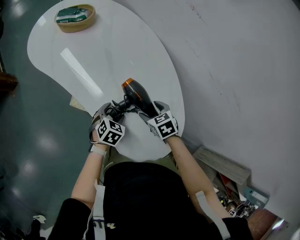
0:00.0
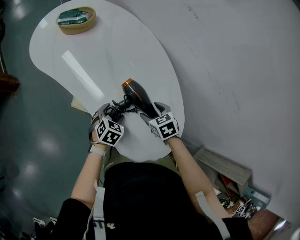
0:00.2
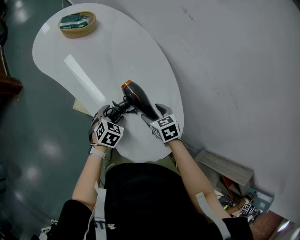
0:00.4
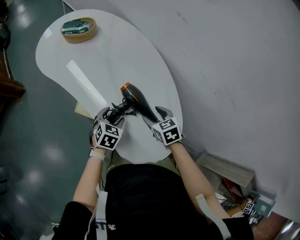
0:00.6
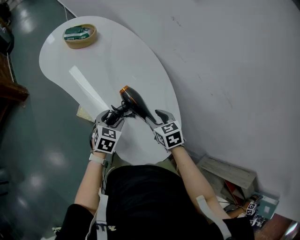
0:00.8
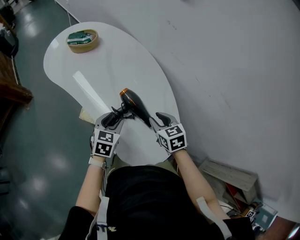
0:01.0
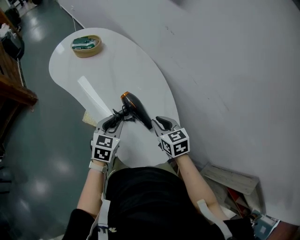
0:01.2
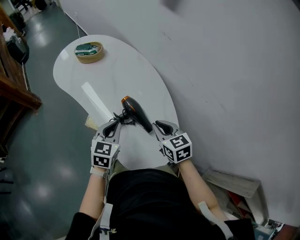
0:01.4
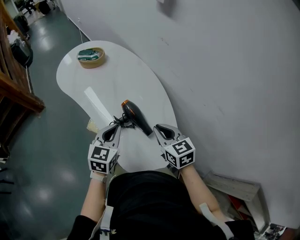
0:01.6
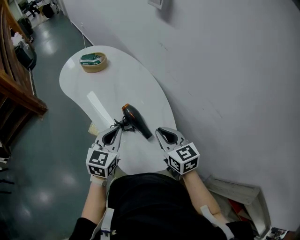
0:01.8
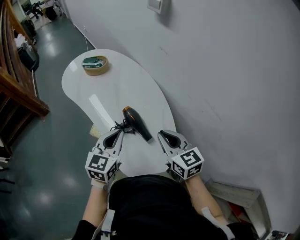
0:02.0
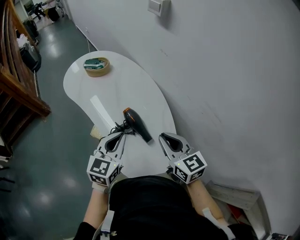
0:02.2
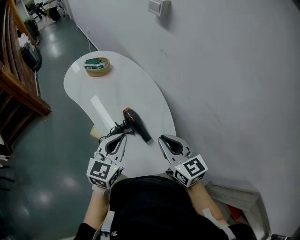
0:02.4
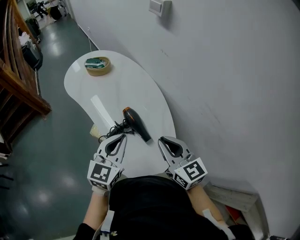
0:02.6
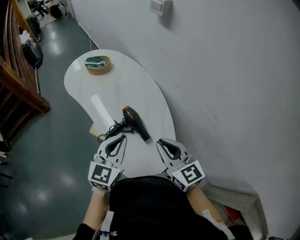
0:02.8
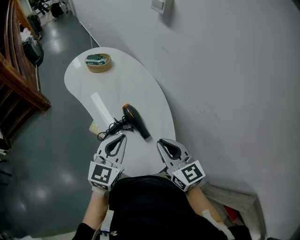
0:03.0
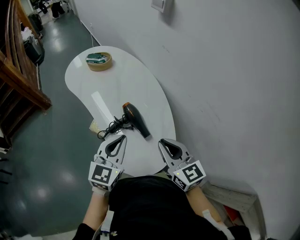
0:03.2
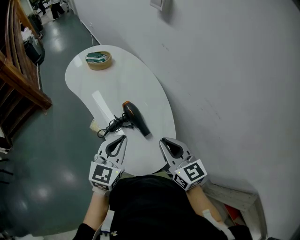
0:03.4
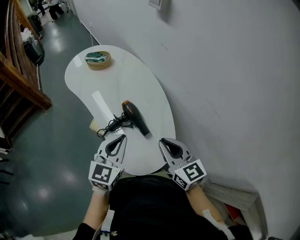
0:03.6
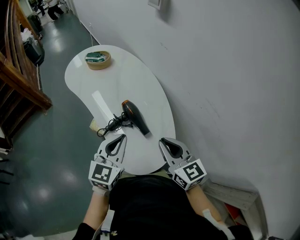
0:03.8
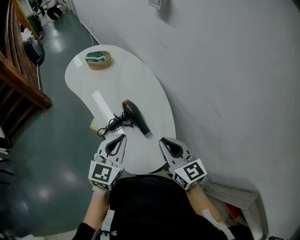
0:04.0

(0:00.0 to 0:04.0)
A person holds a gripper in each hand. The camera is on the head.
0:00.0 - 0:01.4: The two grippers go roughly 20 cm upward. The left gripper swivels approximately 30 degrees, and closes its fingers, while the right gripper turns by roughly 30 degrees, and closes its fingers.
0:01.4 - 0:02.6: Both grippers move upward and backward, approximately 15 cm. The right gripper turns by approximately 20 degrees.
0:02.6 - 0:04.0: There are only small adjustments of the grippers.

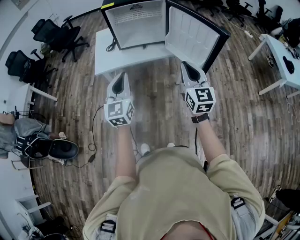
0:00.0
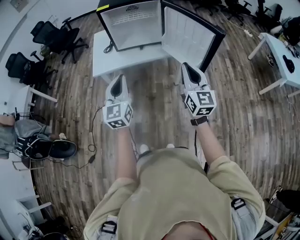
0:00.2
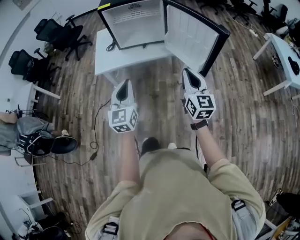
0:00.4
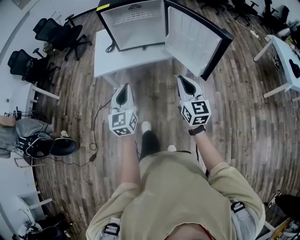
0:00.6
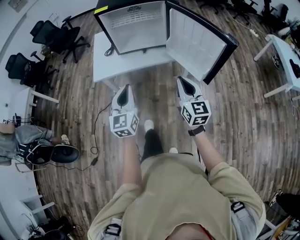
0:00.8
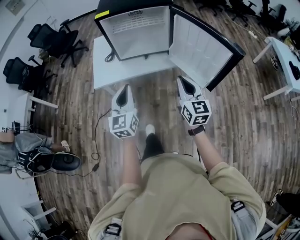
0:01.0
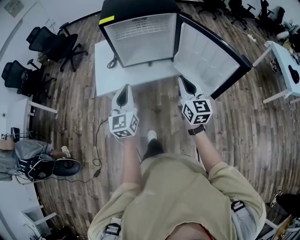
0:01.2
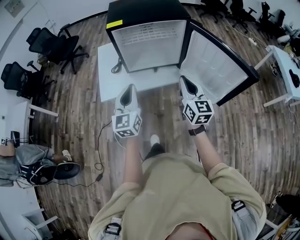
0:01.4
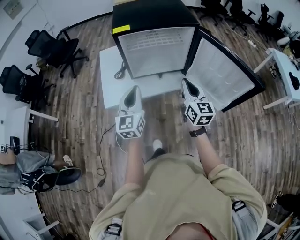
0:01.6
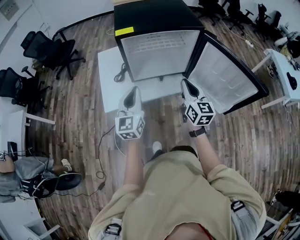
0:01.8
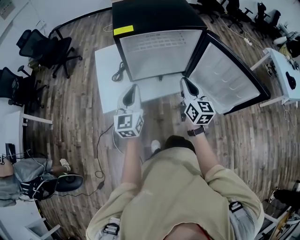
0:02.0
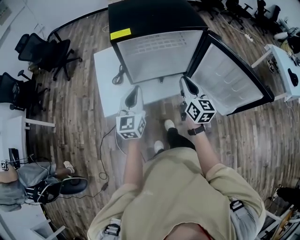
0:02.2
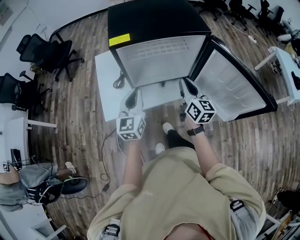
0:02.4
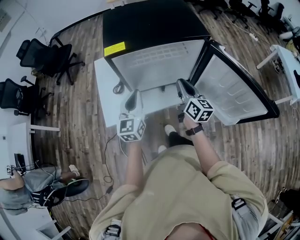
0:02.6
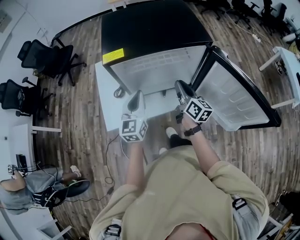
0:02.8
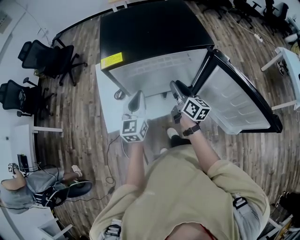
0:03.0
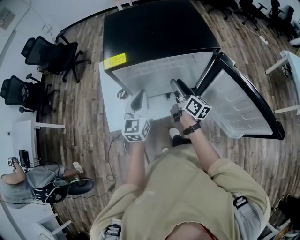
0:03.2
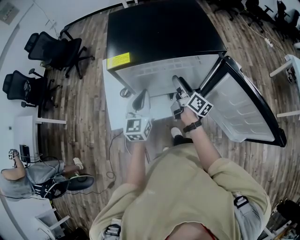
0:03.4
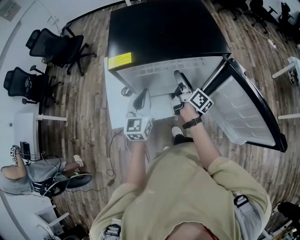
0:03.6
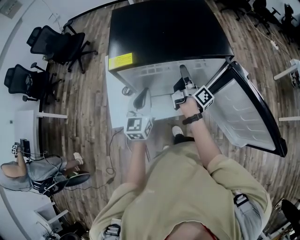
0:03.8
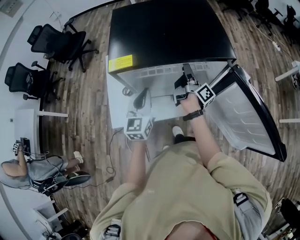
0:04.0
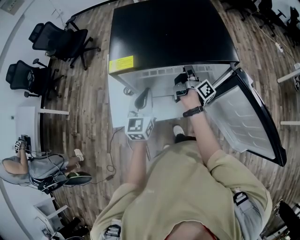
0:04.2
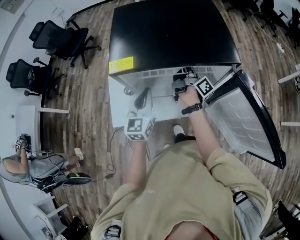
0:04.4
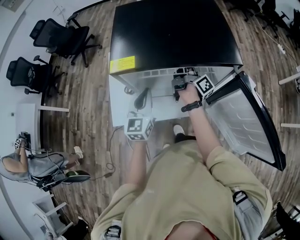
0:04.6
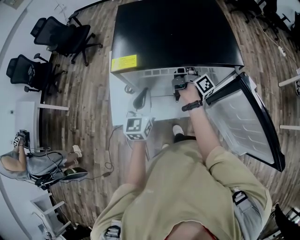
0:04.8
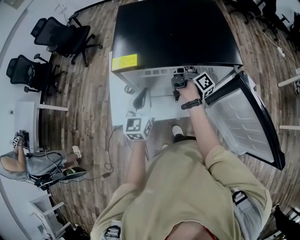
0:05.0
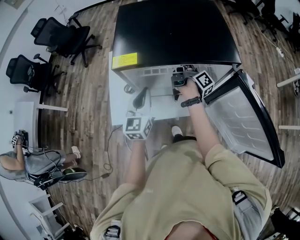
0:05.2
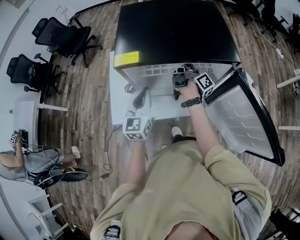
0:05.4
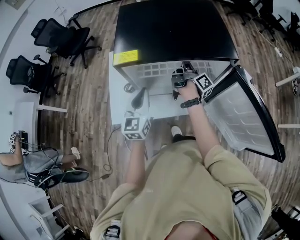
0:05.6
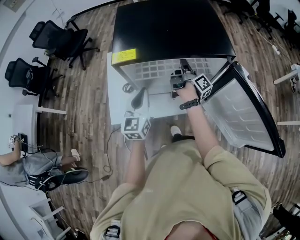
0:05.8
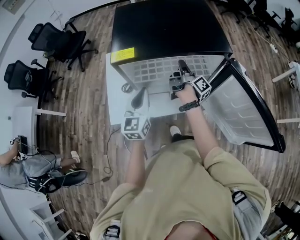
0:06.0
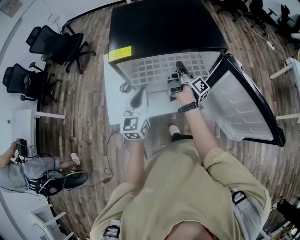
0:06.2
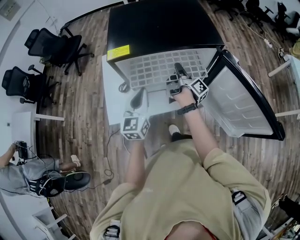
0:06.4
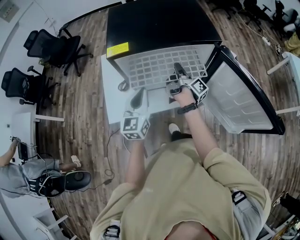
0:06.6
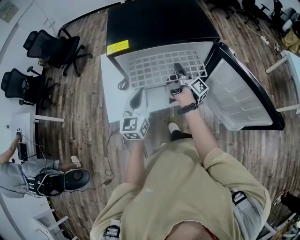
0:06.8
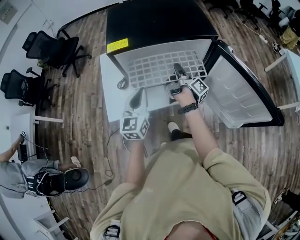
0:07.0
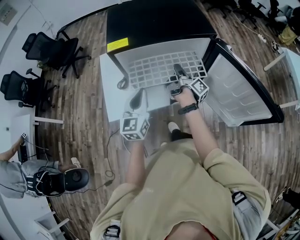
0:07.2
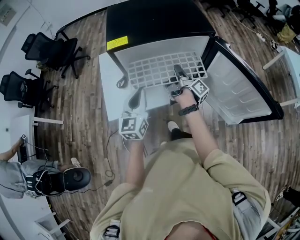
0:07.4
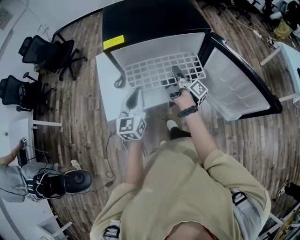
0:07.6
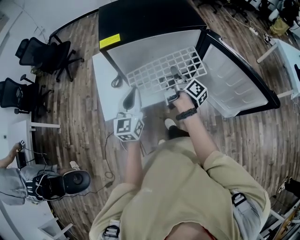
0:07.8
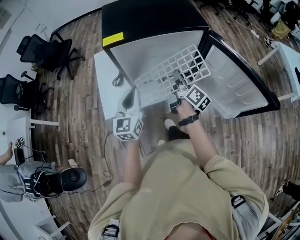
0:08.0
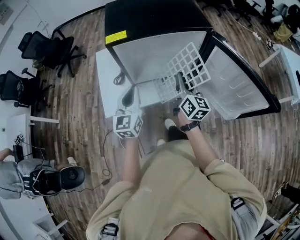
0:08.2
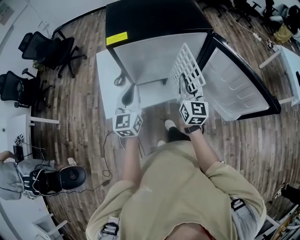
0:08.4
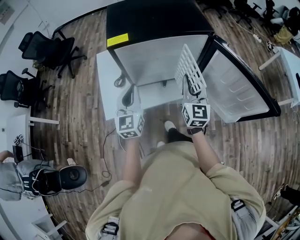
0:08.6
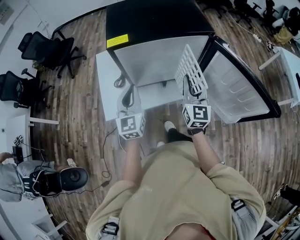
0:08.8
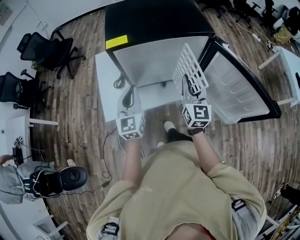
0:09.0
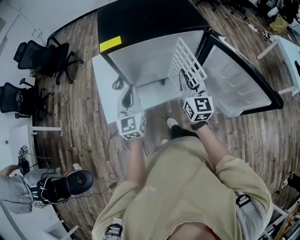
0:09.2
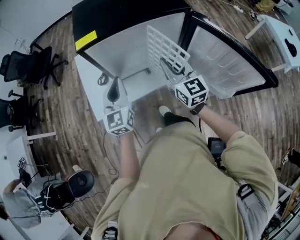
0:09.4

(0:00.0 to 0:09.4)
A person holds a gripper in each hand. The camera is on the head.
0:00.0 - 0:01.6: The grippers both shift forward by about 25 cm.
0:01.6 - 0:03.2: The two grippers go some 25 cm forward. The right gripper rotates around the line of its fingers by some 40 degrees, clockwise from behind, and opens its fingers.
0:03.2 - 0:04.8: The left gripper moves some 5 cm; the right gripper is displaced forward by some 15 cm, and rotates some 40 degrees.
0:04.8 - 0:06.2: The left gripper changes place by some 5 cm. The right gripper is displaced backward by about 5 cm, and closes up.
0:06.2 - 0:07.8: The right gripper shifts some 15 cm backward; the left gripper heads backward, covering some 10 cm.
0:07.8 - 0:09.4: The right gripper heads upward, covering roughly 10 cm, and rolls counterclockwise, seen from behind, by some 80 degrees. The left gripper moves roughly 5 cm.

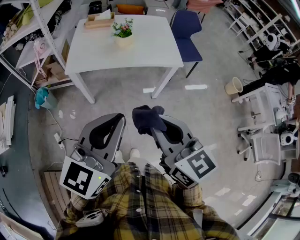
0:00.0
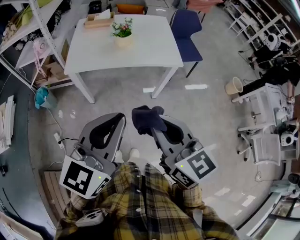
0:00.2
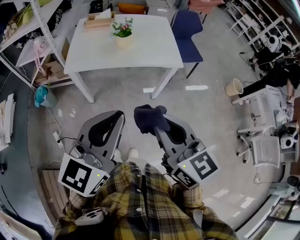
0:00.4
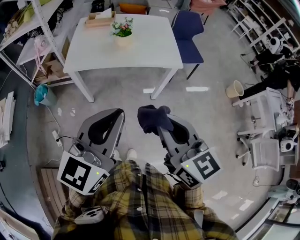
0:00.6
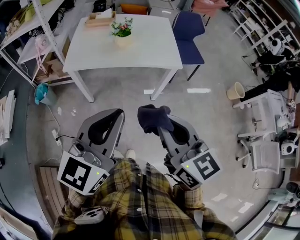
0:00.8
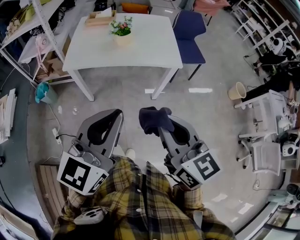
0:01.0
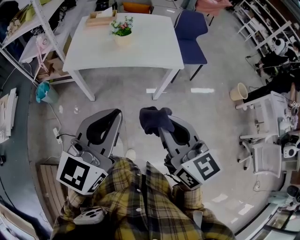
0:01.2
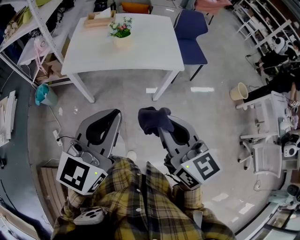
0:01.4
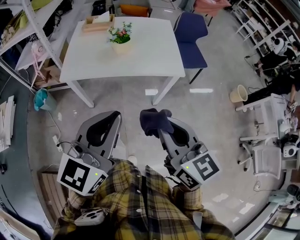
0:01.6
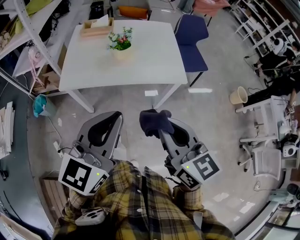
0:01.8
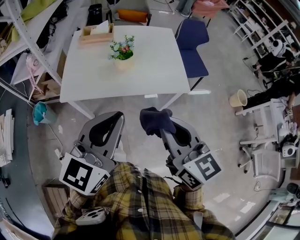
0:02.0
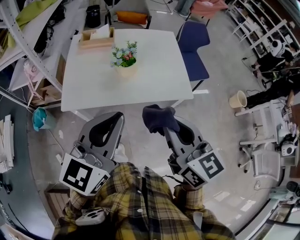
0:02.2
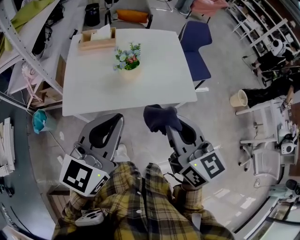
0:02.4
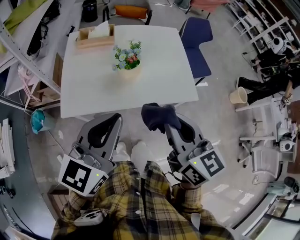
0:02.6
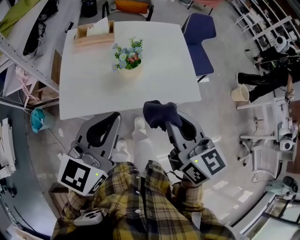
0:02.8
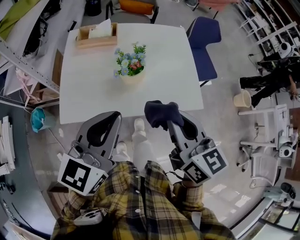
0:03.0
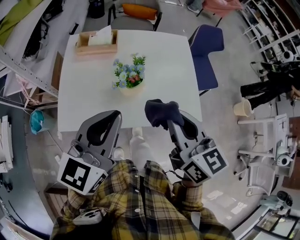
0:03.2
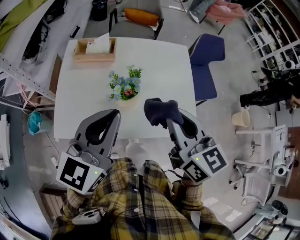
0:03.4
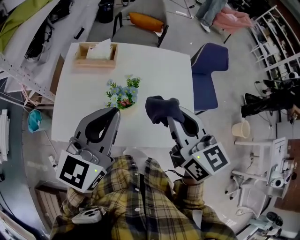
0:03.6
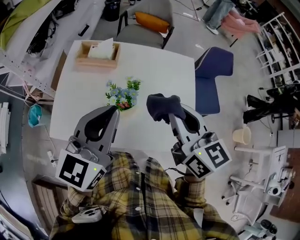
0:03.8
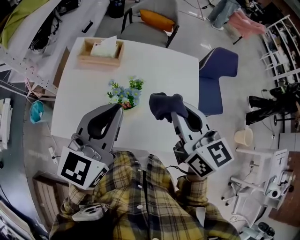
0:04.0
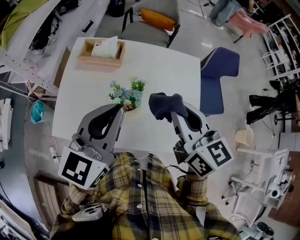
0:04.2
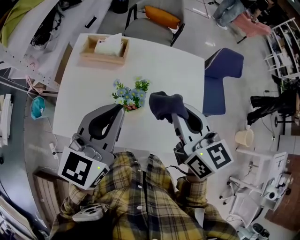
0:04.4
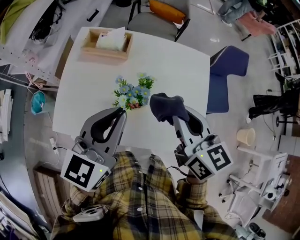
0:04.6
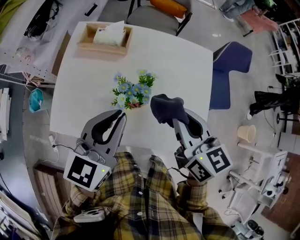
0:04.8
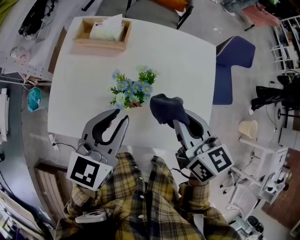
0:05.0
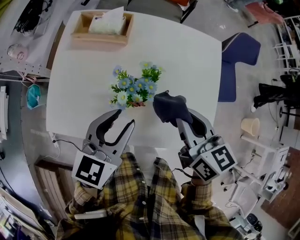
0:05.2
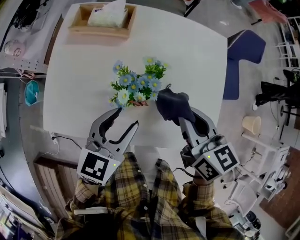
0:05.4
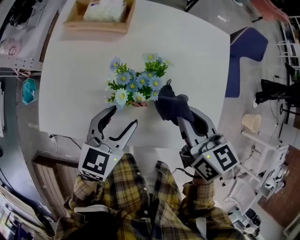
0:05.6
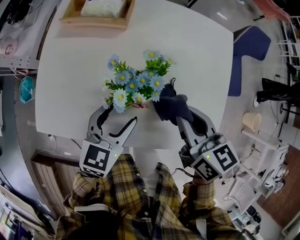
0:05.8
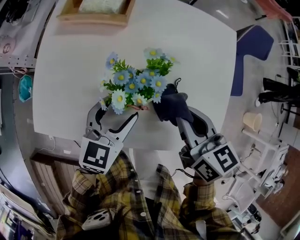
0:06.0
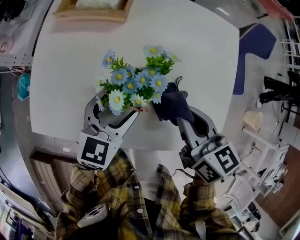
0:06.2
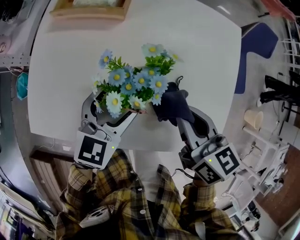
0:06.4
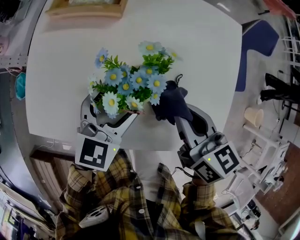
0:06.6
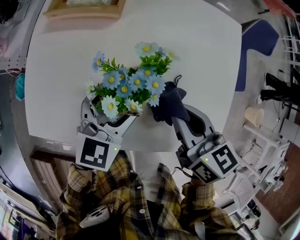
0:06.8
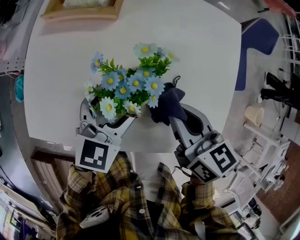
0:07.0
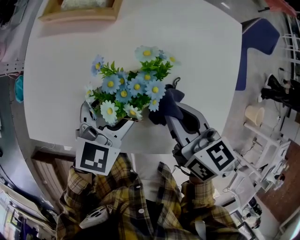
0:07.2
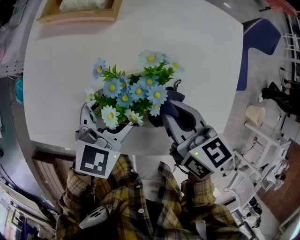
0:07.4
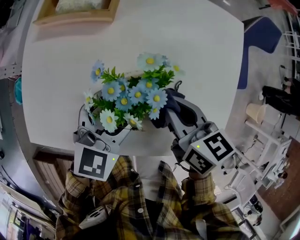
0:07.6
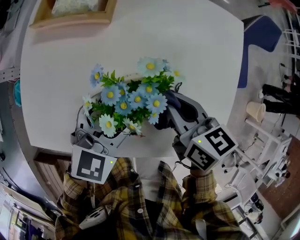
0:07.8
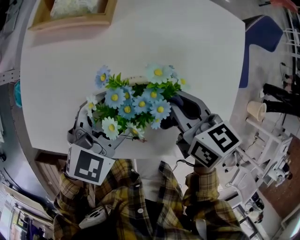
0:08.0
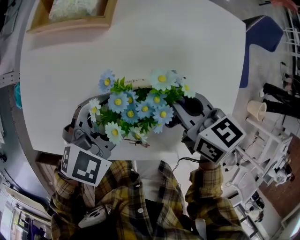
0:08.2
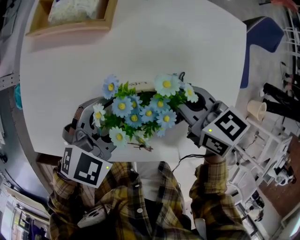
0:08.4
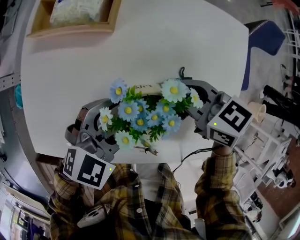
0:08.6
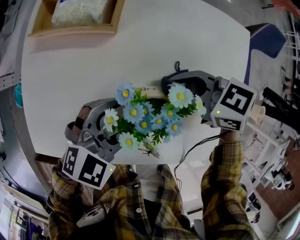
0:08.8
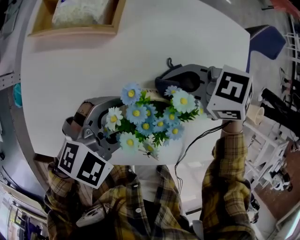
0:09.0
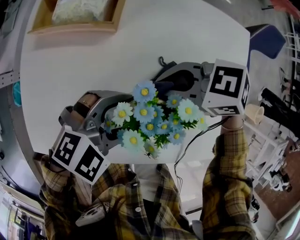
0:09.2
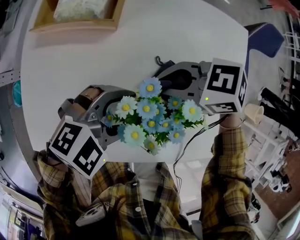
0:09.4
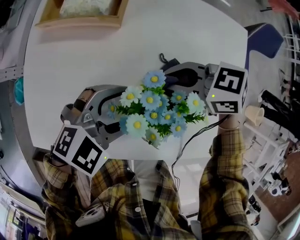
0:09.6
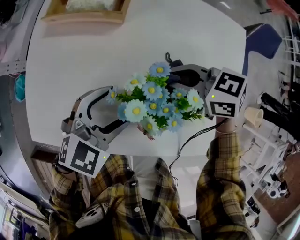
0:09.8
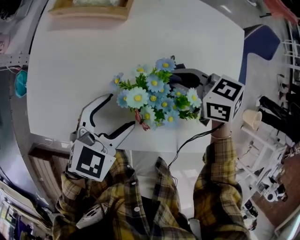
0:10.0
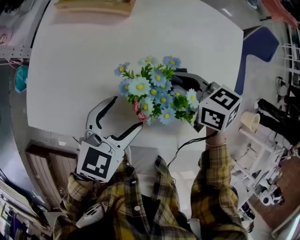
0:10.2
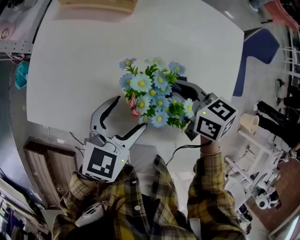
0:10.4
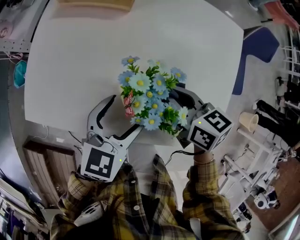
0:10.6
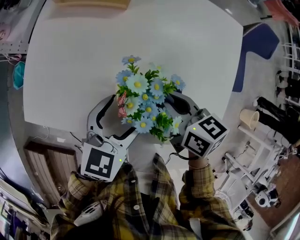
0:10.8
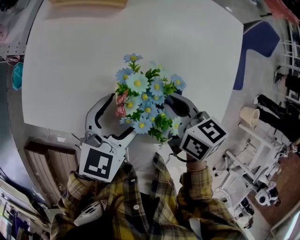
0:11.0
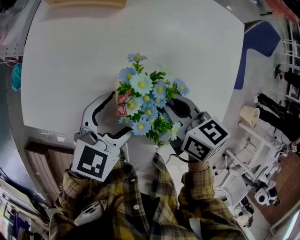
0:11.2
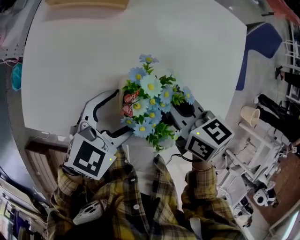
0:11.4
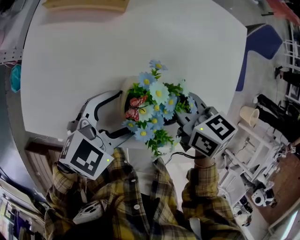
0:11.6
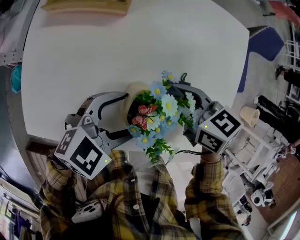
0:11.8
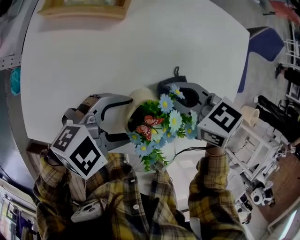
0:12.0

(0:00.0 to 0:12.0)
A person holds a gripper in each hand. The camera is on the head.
0:00.0 - 0:01.6: The left gripper moves forward, roughly 10 cm. The right gripper is displaced forward and to the right by approximately 10 cm.
0:01.6 - 0:03.0: The right gripper shifts some 30 cm forward, while the left gripper heads forward and to the left, covering roughly 30 cm.
0:03.0 - 0:04.4: The grippers both shift forward by some 20 cm.
0:04.4 - 0:06.0: The grippers both shift downward by roughly 25 cm. The left gripper turns by some 20 degrees, and opens its fingers.
0:06.0 - 0:07.6: The right gripper moves downward, roughly 5 cm.
0:07.6 - 0:09.0: The right gripper ends up roughly 10 cm from where it was, and turns by approximately 50 degrees; the left gripper turns by approximately 30 degrees.
0:09.0 - 0:10.4: The left gripper changes place by about 5 cm, and changes its angle by roughly 40 degrees, while the right gripper ends up about 10 cm from where it was, and changes its angle by approximately 40 degrees.
0:10.4 - 0:12.0: The left gripper swivels roughly 50 degrees.
